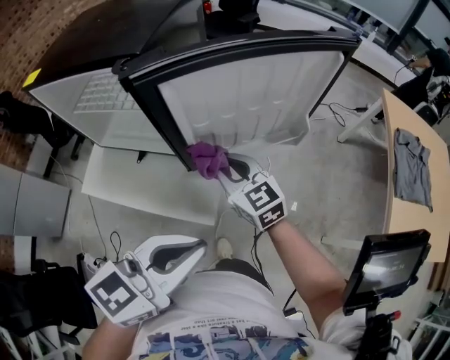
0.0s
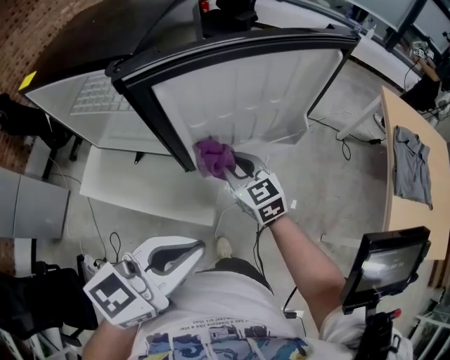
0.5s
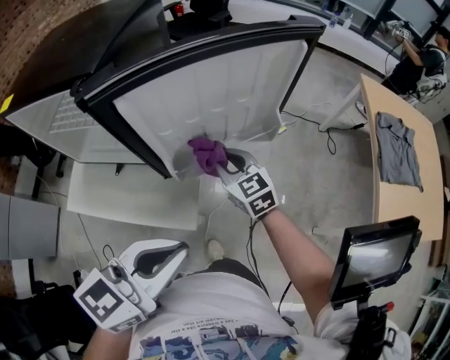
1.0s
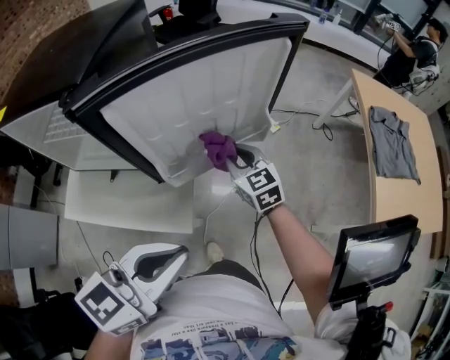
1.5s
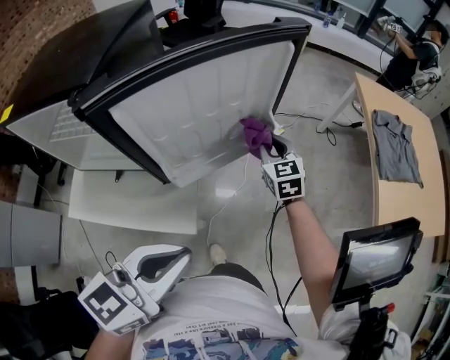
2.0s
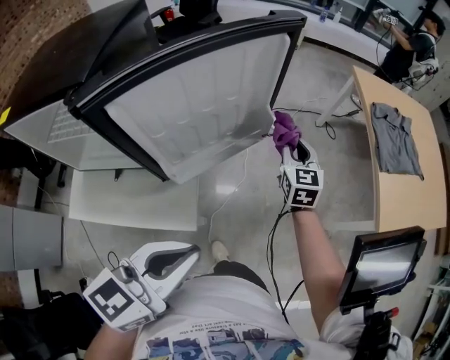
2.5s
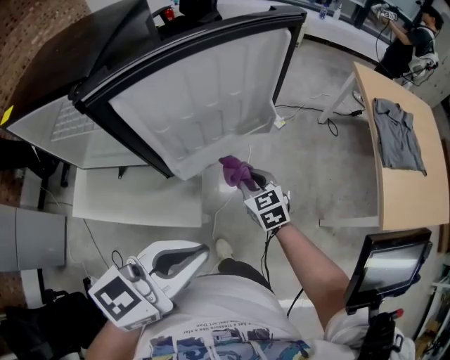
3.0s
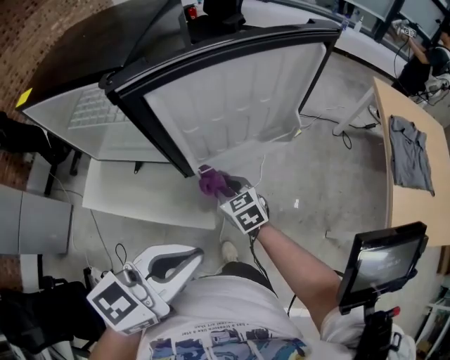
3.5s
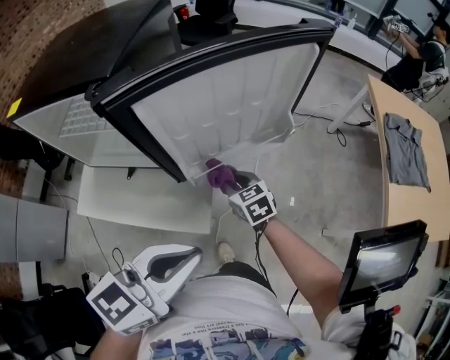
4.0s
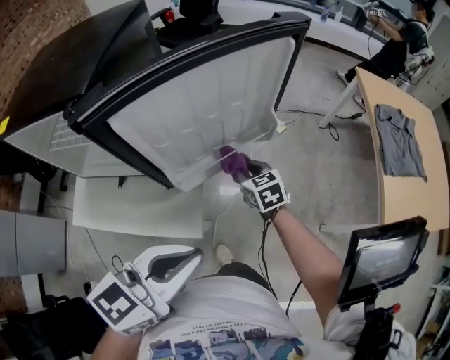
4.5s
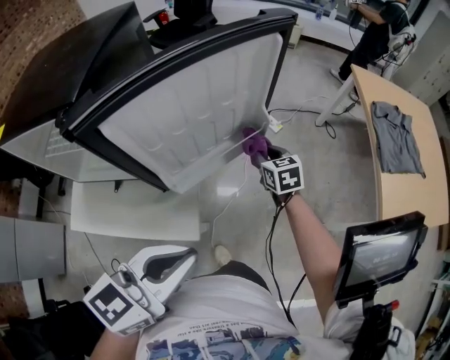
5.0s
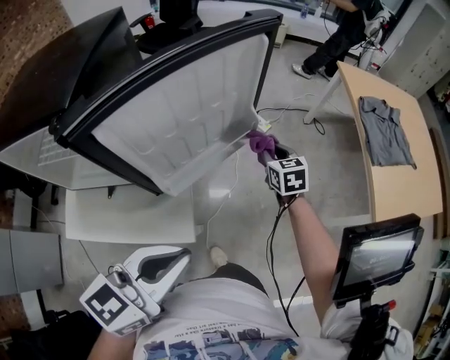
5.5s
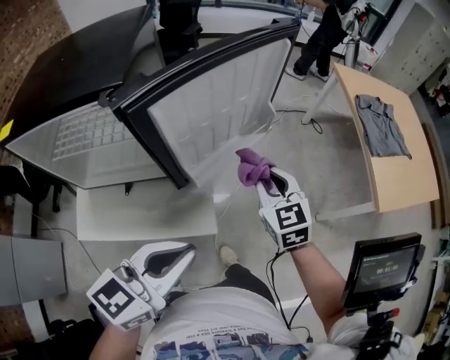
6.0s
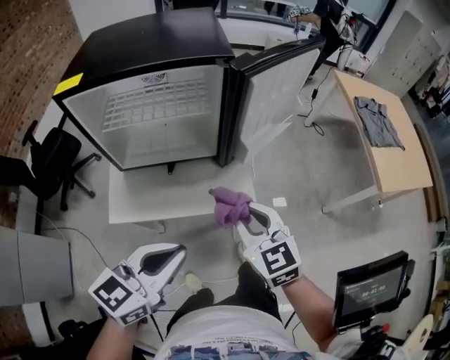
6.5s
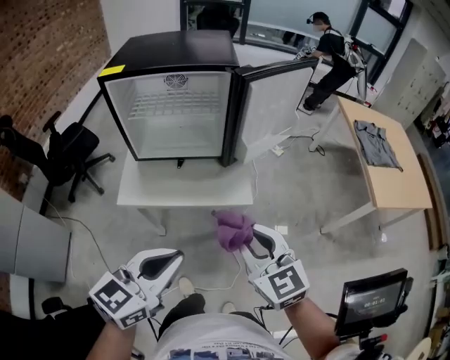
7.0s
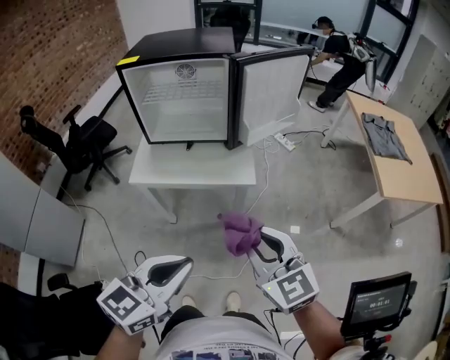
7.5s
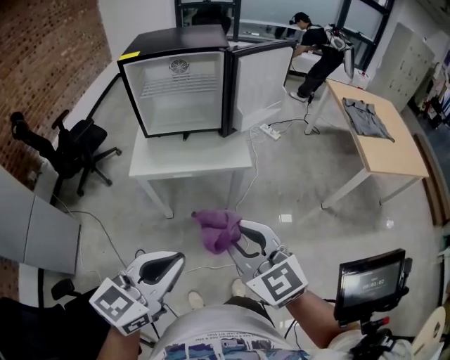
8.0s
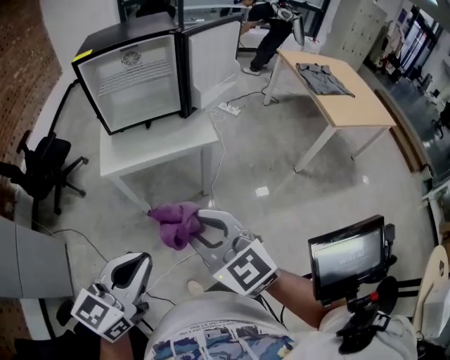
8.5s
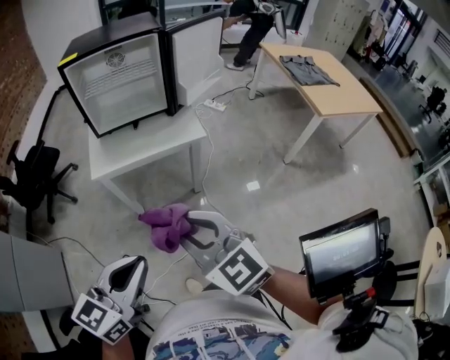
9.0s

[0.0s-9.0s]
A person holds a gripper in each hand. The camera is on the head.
0.0s to 2.0s: The right gripper travels to the right and forward by approximately 25 cm, and rotates some 30 degrees.
2.0s to 4.5s: The right gripper rotates approximately 20 degrees.
4.5s to 7.0s: The right gripper travels backward and upward by roughly 50 cm, and turns by about 30 degrees, while the left gripper moves backward and to the left, about 30 cm.
7.0s to 9.0s: The right gripper heads backward and to the left, covering approximately 25 cm; the left gripper moves backward, some 20 cm.

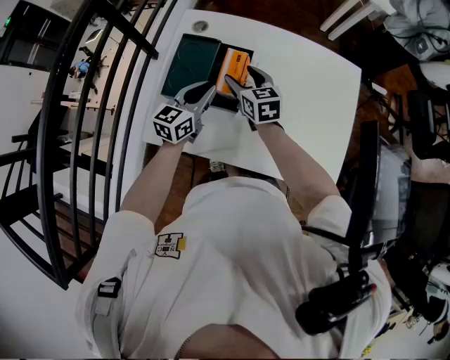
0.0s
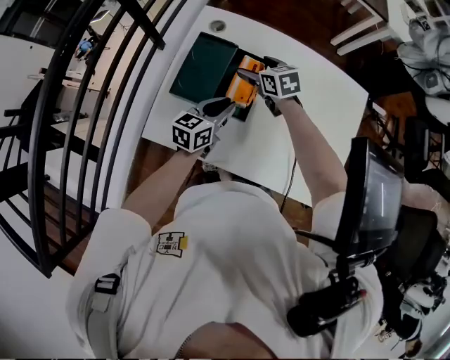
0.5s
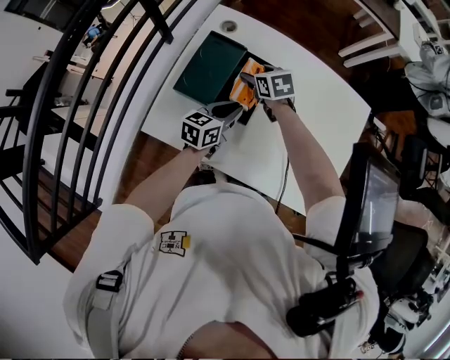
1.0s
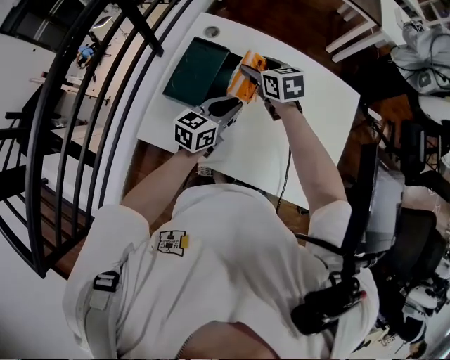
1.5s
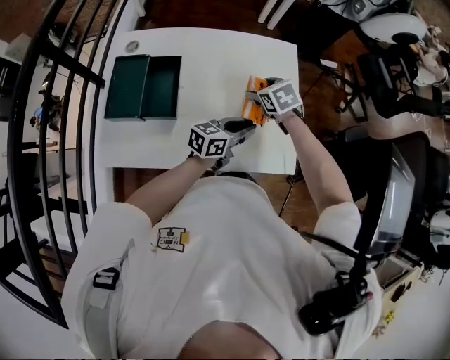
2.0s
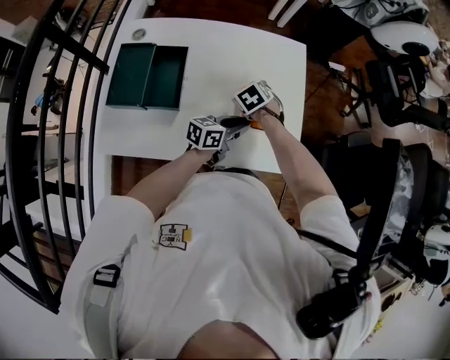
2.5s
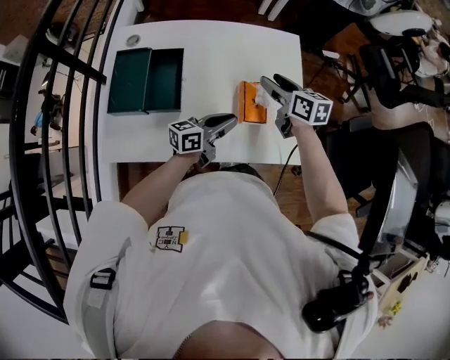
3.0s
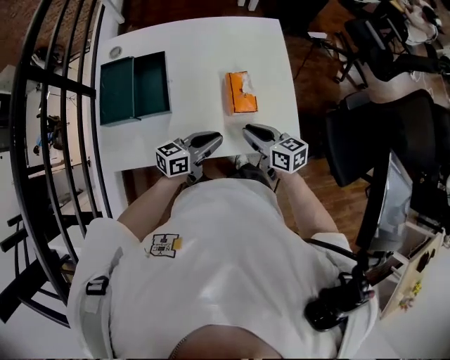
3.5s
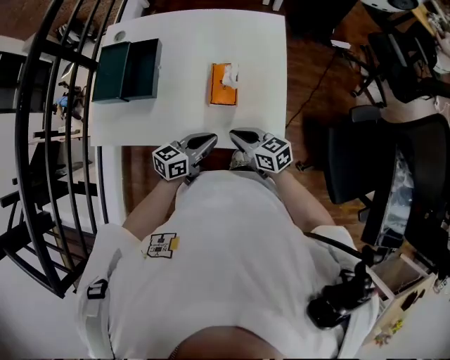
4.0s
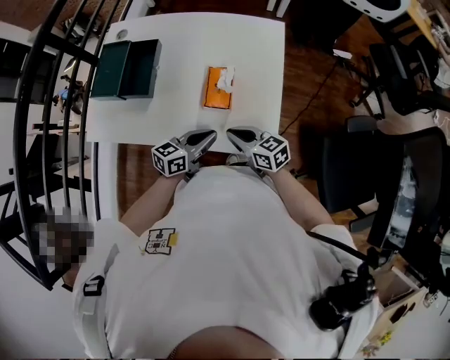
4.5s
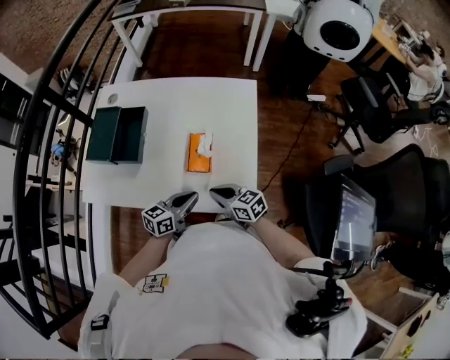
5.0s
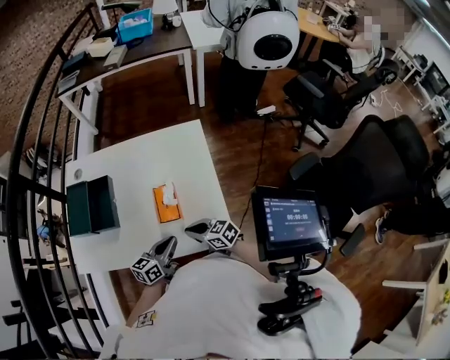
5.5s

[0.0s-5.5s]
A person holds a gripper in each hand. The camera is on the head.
0.0s to 2.0s: The left gripper moves roughly 30 cm, and turns by roughly 40 degrees. Meanwhile the right gripper swings up and down, some 10 cm each way, with 2 reversals, and swivels about 30 degrees.
2.0s to 3.5s: The left gripper travels backward by approximately 10 cm. The right gripper travels backward by approximately 20 cm, angles its fingers upward, by approximately 30 degrees, and closes its fingers.
3.5s to 5.5s: The left gripper shifts some 10 cm to the right, and rotates approximately 20 degrees; the right gripper ends up approximately 5 cm from where it was, and rotates some 20 degrees.

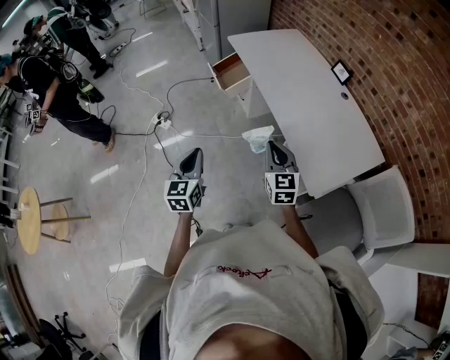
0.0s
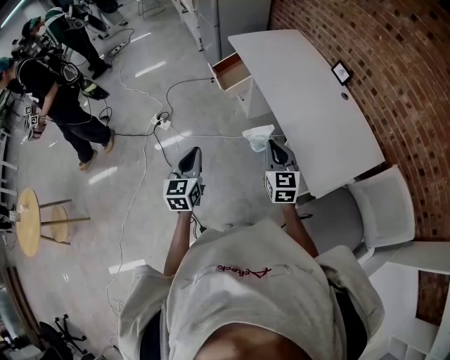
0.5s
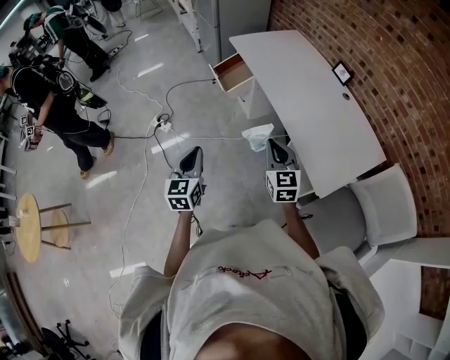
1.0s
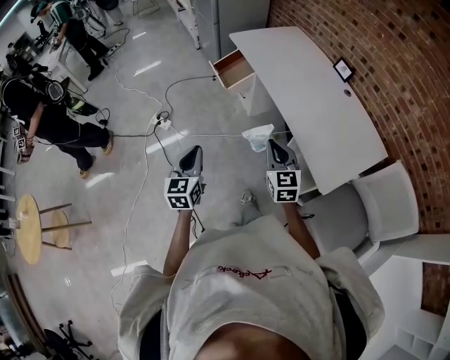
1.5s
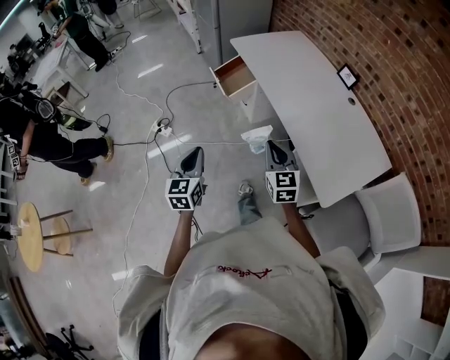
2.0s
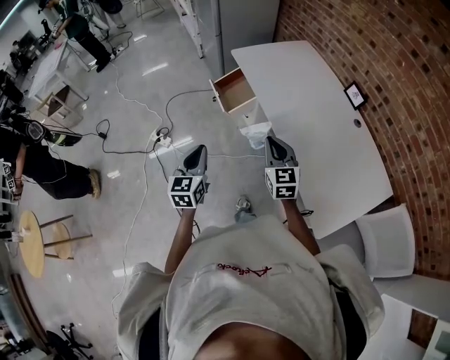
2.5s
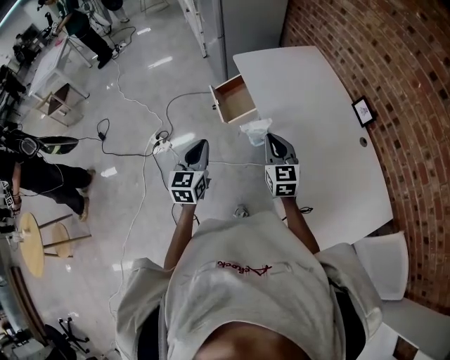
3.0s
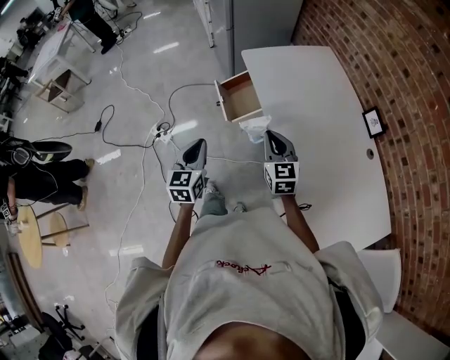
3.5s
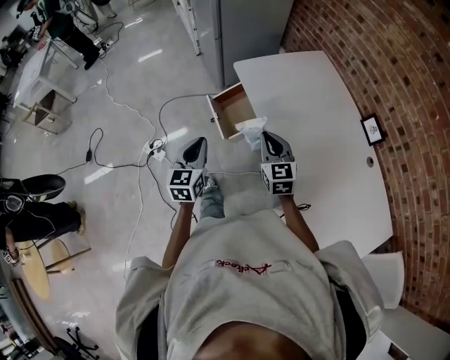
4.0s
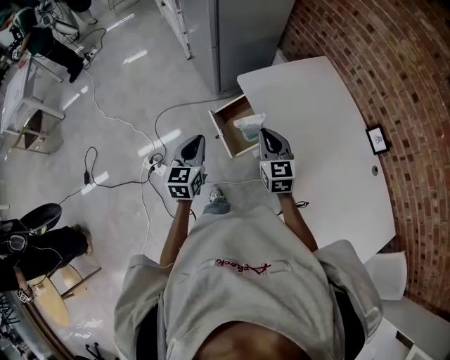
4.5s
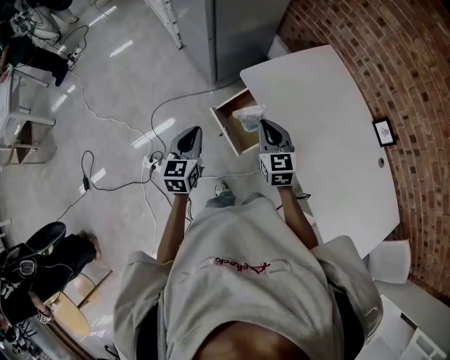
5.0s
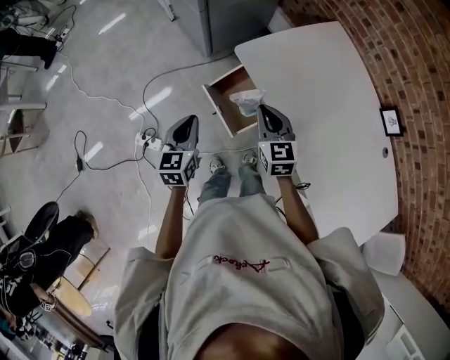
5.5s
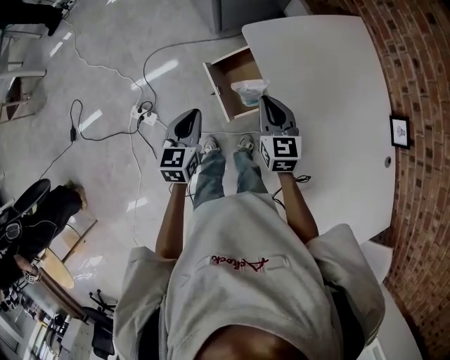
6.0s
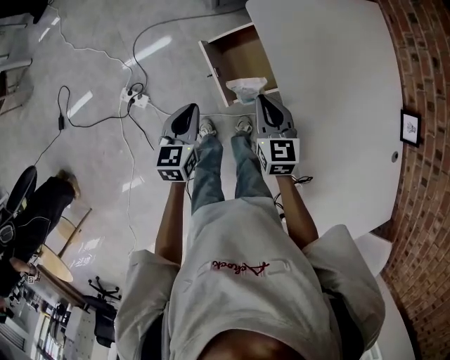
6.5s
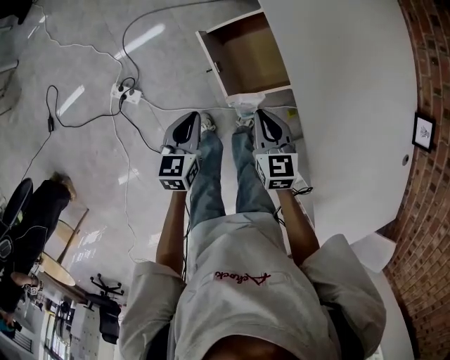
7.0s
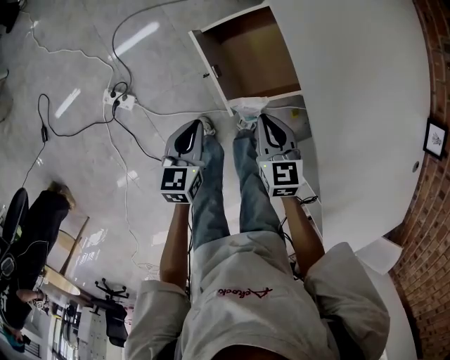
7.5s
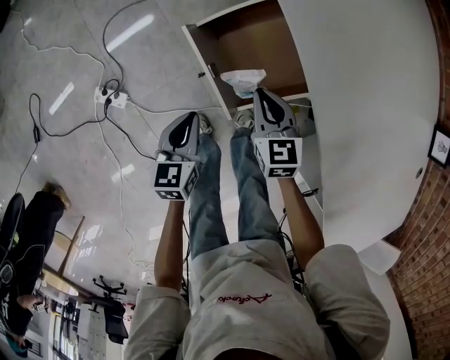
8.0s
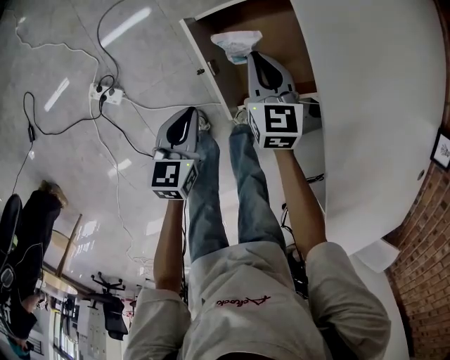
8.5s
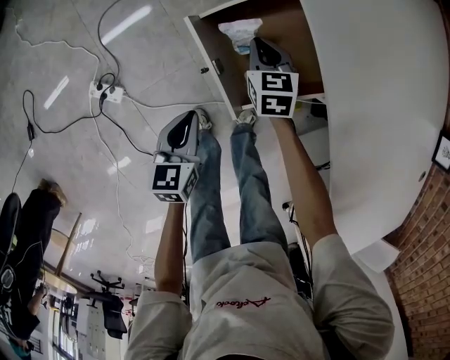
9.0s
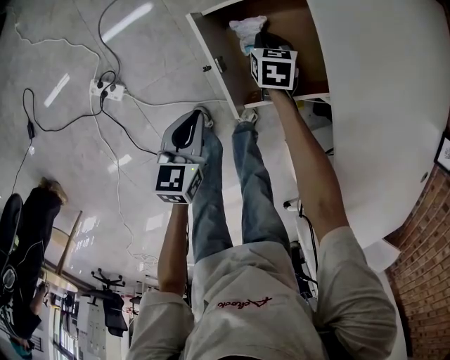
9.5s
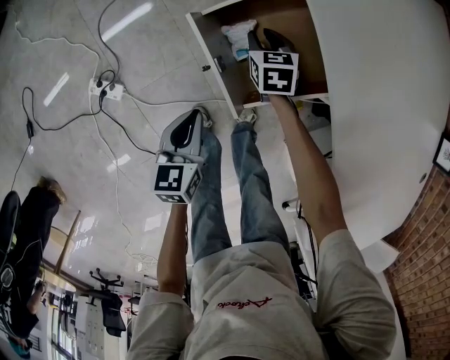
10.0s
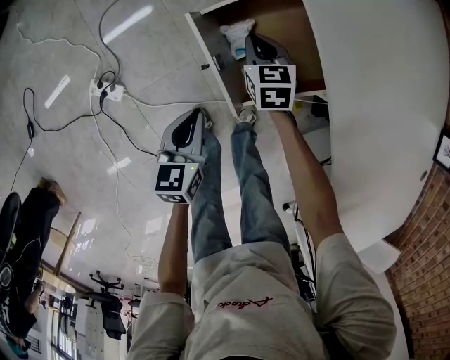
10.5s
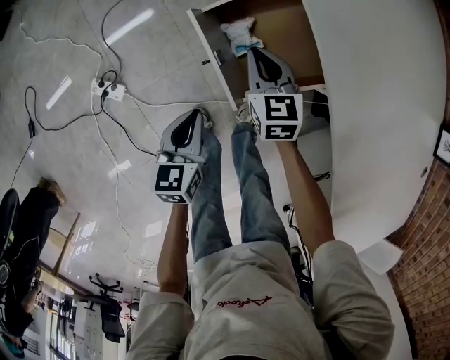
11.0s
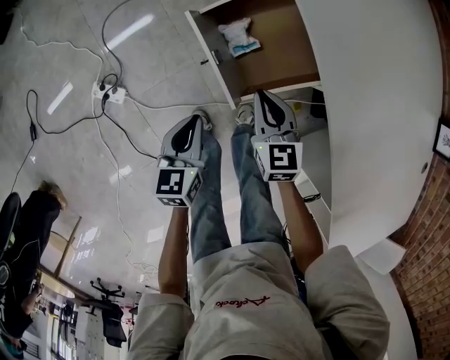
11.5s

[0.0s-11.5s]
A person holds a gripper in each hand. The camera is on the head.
0.0s to 2.0s: The left gripper goes roughly 10 cm forward; the right gripper shifts some 10 cm forward and to the left.
2.0s to 4.0s: Both grippers are carried forward, some 40 cm.
4.0s to 6.0s: Both grippers move forward and downward, approximately 20 cm.
6.0s to 7.5s: The grippers both shift downward by some 20 cm.
7.5s to 9.5s: The left gripper goes some 5 cm downward; the right gripper goes approximately 25 cm forward and downward.
9.5s to 11.5s: The right gripper is displaced backward and upward by roughly 20 cm, rotates approximately 20 degrees, and opens, then closes once more.

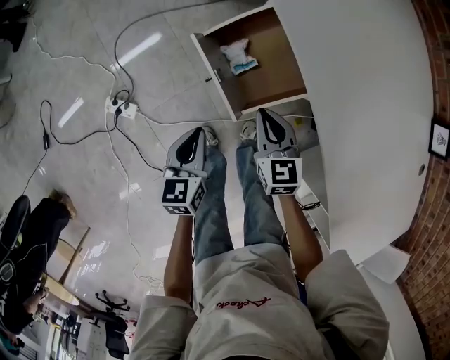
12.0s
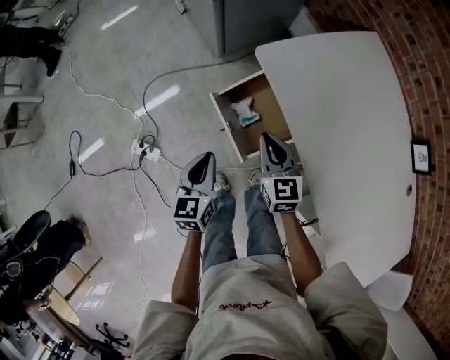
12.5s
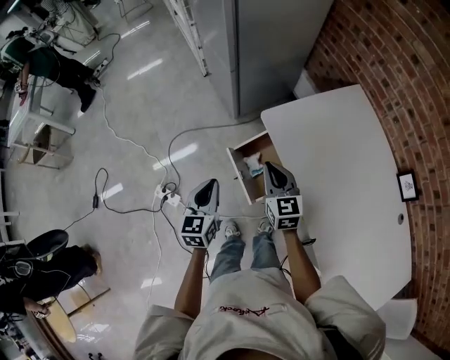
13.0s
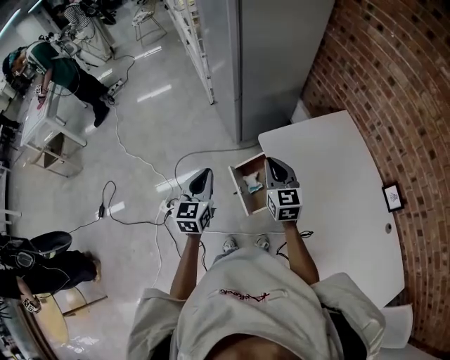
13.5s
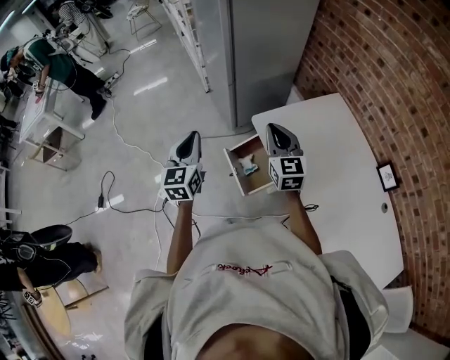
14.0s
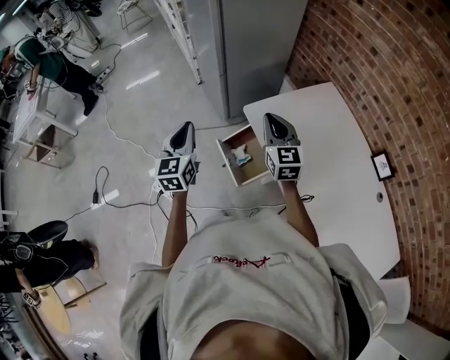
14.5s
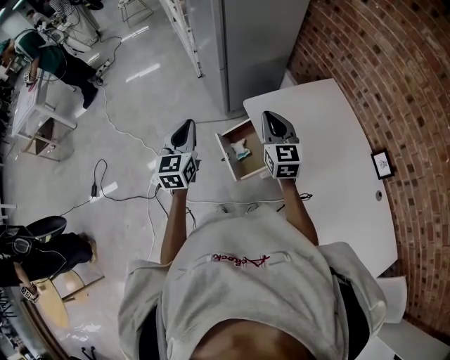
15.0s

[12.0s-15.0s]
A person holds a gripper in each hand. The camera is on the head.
12.0s to 13.5s: The two grippers go approximately 35 cm upward. The right gripper changes its angle by some 20 degrees. Meanwhile the left gripper changes its angle by approximately 30 degrees.
13.5s to 15.0s: The grippers both shift upward by approximately 5 cm.
